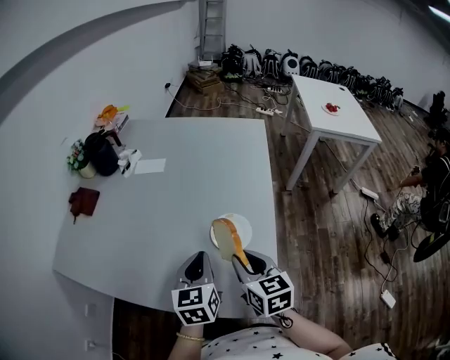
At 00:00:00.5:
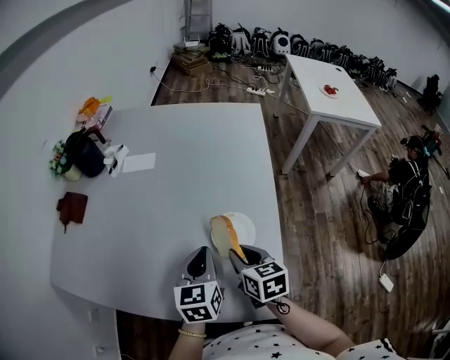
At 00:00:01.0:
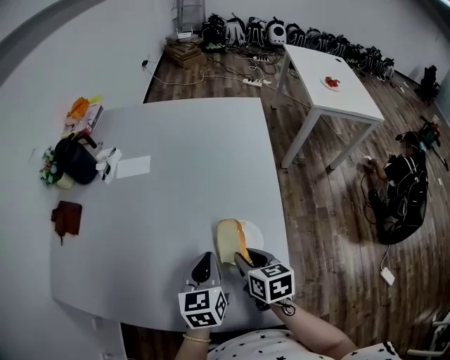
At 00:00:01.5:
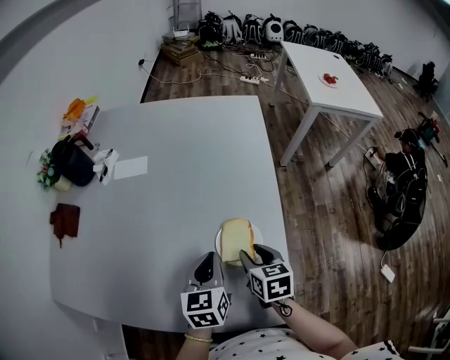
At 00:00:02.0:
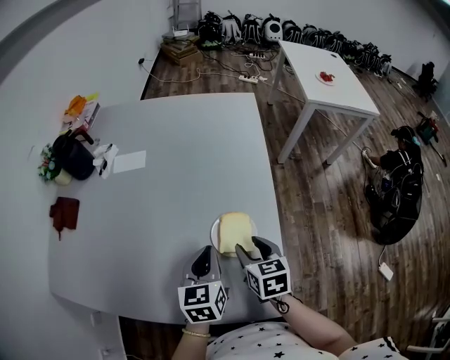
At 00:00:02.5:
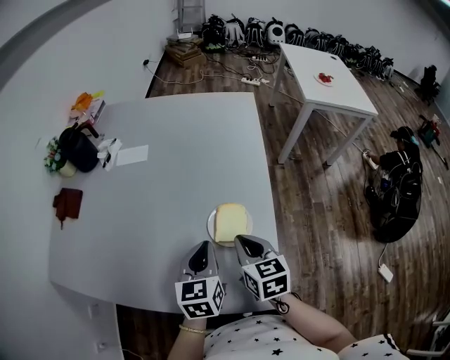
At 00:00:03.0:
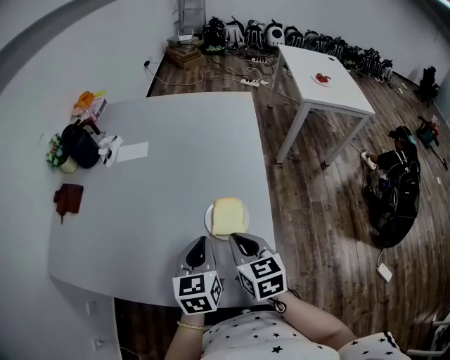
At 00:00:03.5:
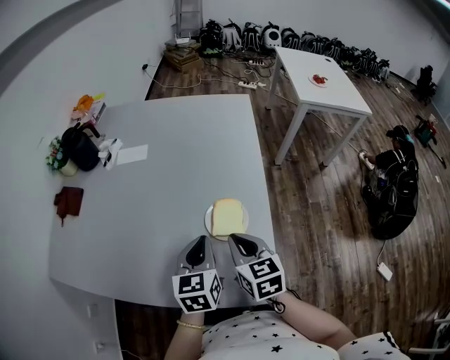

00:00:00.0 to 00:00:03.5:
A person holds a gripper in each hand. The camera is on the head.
00:00:00.0 to 00:00:02.0: The right gripper is displaced downward and forward by approximately 10 cm, and opens. The left gripper is displaced forward by roughly 5 cm.
00:00:02.0 to 00:00:03.5: The right gripper travels upward by some 5 cm, and closes.

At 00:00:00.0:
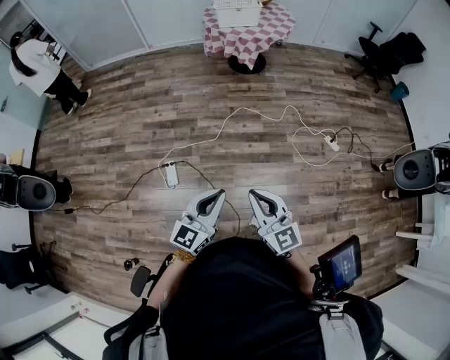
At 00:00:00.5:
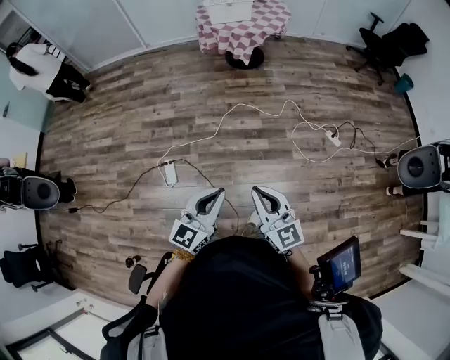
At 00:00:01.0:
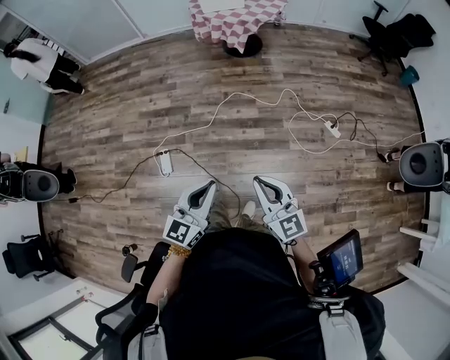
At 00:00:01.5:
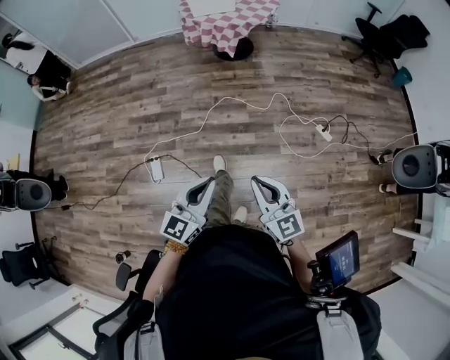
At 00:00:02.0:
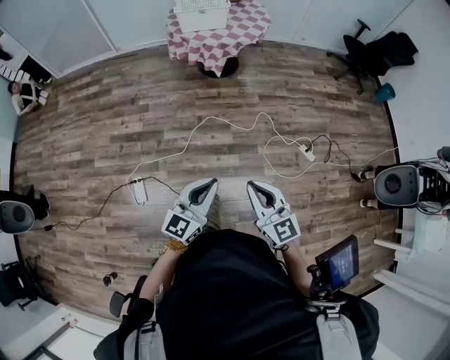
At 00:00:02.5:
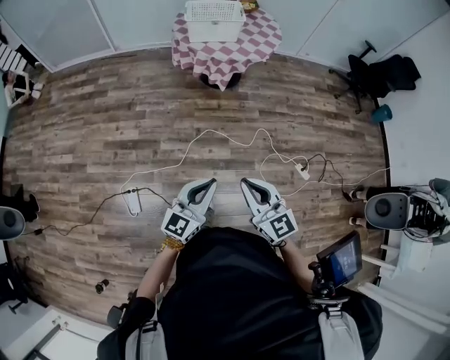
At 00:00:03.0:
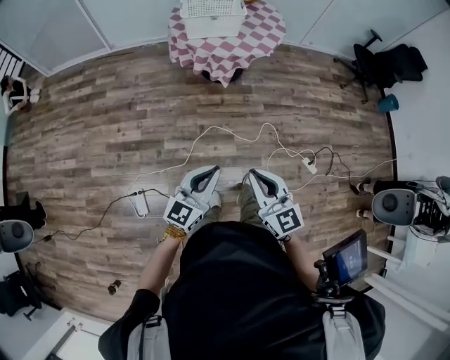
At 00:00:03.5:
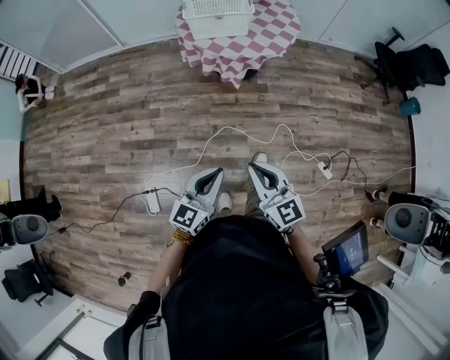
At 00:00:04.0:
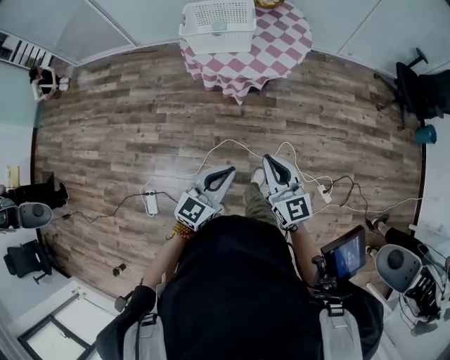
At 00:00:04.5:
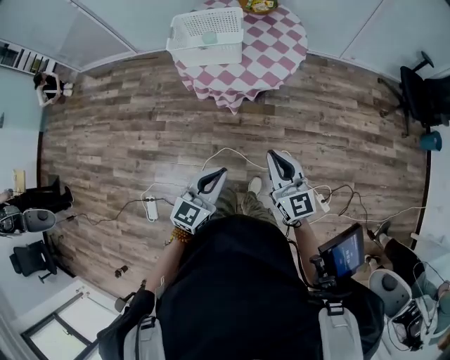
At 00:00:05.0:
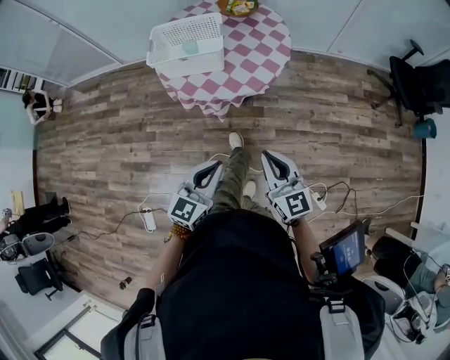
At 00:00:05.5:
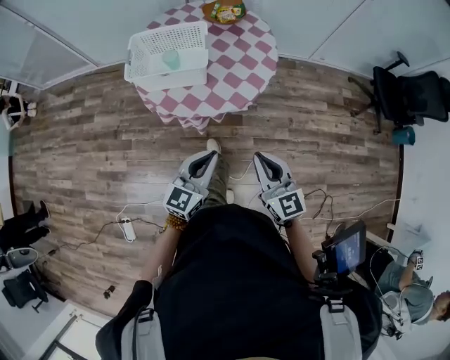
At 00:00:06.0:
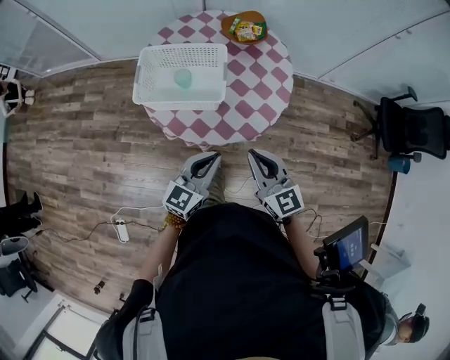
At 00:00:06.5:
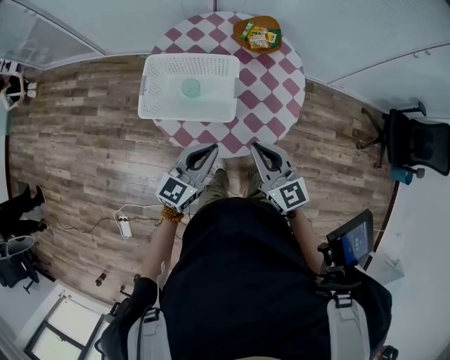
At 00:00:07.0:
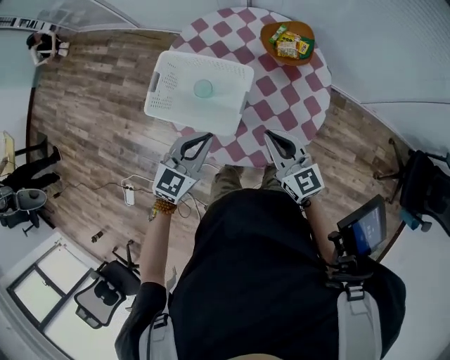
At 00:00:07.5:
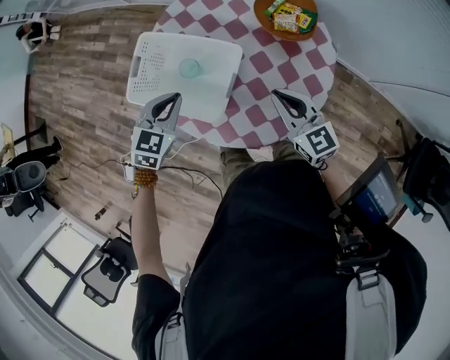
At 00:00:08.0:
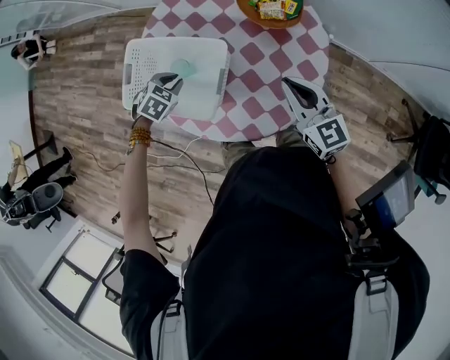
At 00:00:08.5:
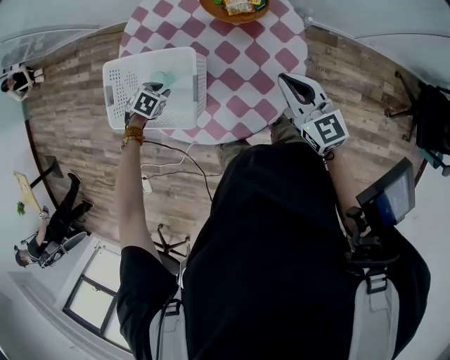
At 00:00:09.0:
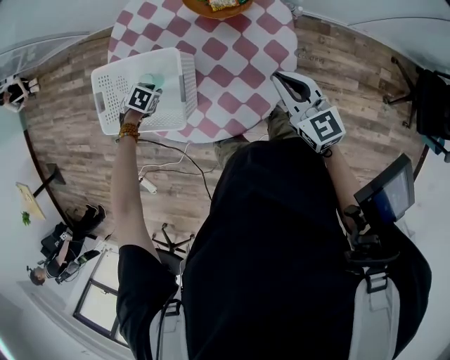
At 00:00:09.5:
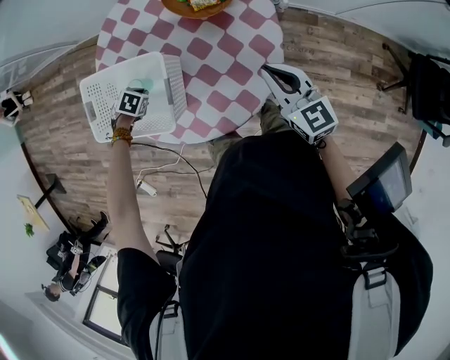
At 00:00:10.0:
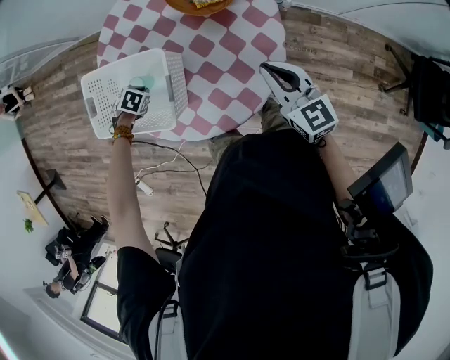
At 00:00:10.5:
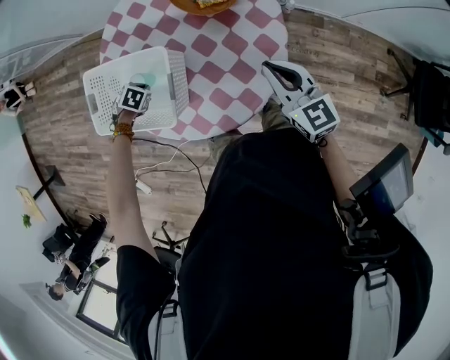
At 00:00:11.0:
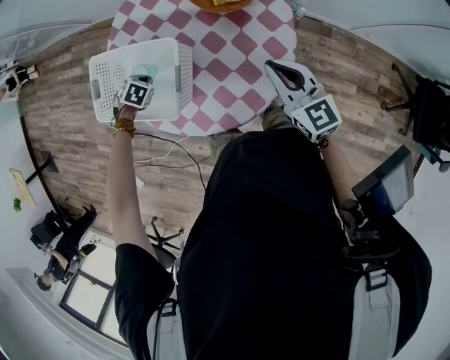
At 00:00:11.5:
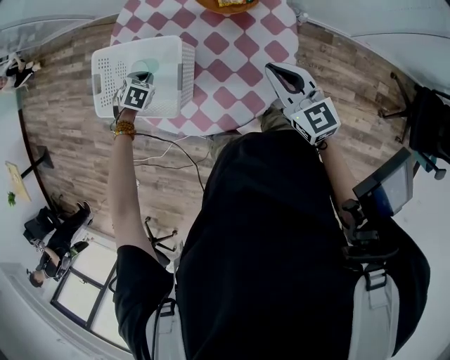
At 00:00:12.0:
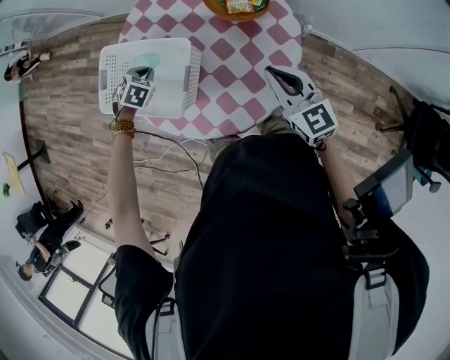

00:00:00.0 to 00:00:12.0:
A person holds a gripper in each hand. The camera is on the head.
00:00:00.0 to 00:00:02.0: The two grippers go about 25 cm forward and to the right.
00:00:02.0 to 00:00:04.0: The pair of grippers is taken forward, about 50 cm.
00:00:04.0 to 00:00:06.0: Both grippers are carried forward, roughly 40 cm.
00:00:06.0 to 00:00:08.0: The left gripper moves some 40 cm, and points its fingers approximately 60 degrees further downward. The right gripper shifts by some 35 cm.
00:00:08.0 to 00:00:10.0: The right gripper moves some 10 cm; the left gripper shifts roughly 10 cm downward.
00:00:10.0 to 00:00:12.0: The left gripper travels upward by roughly 10 cm, and swivels some 20 degrees.

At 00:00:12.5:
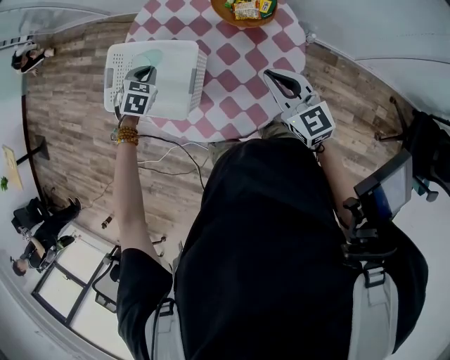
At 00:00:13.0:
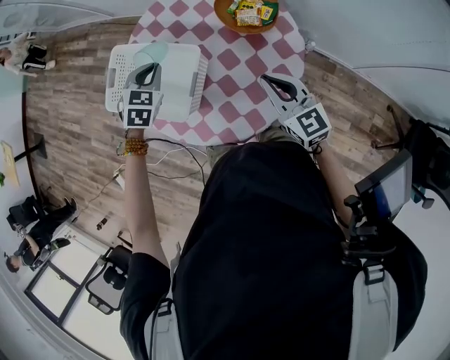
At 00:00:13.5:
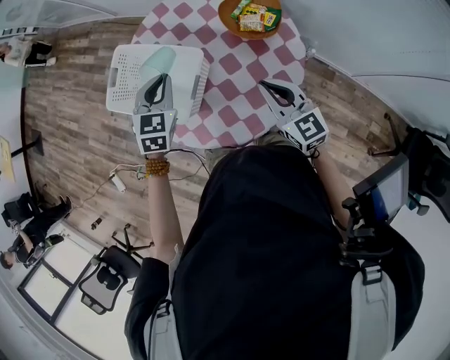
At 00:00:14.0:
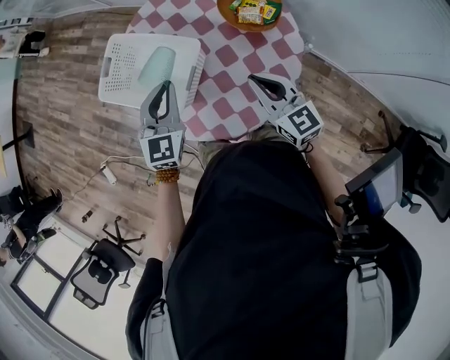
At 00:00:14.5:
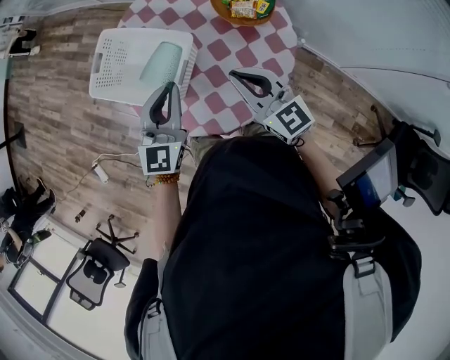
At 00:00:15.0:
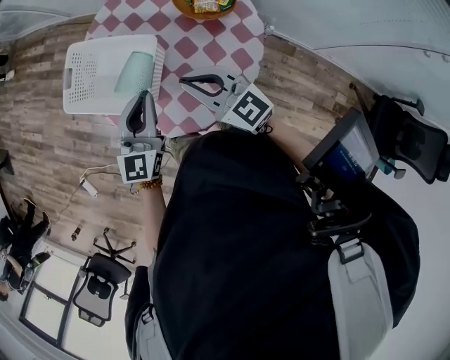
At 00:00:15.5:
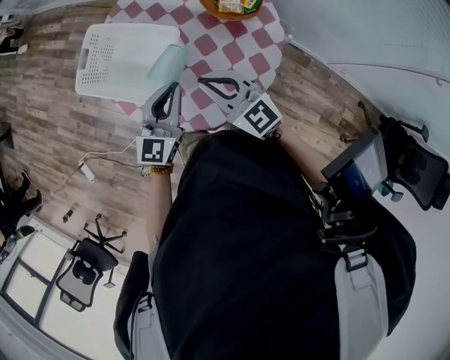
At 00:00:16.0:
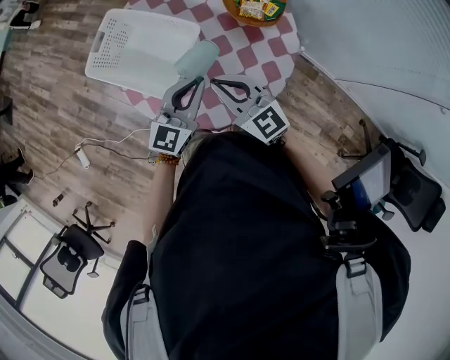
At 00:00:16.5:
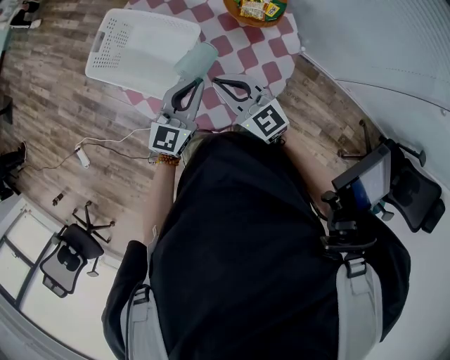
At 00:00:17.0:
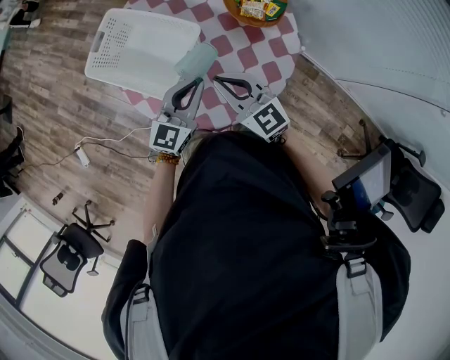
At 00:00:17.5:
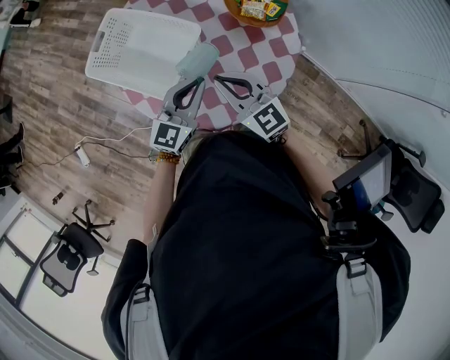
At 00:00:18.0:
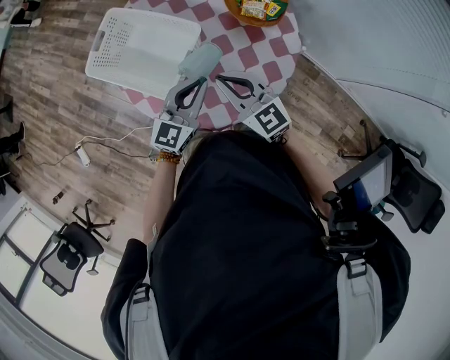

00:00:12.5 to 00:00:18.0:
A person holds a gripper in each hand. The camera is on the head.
00:00:12.5 to 00:00:14.5: The left gripper travels upward, backward and to the right by some 25 cm, and angles its fingers upward, by roughly 50 degrees, while the right gripper moves to the left, approximately 5 cm.
00:00:14.5 to 00:00:16.0: The left gripper is displaced downward by some 5 cm. The right gripper moves to the left, some 5 cm.
00:00:16.0 to 00:00:18.0: There are only small adjustments of the grippers.

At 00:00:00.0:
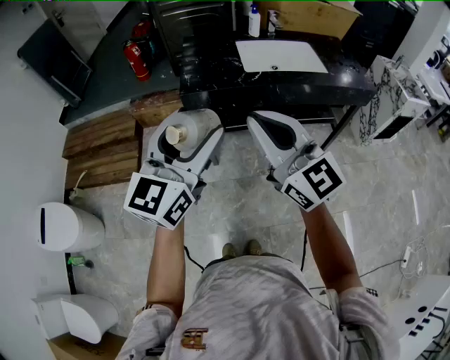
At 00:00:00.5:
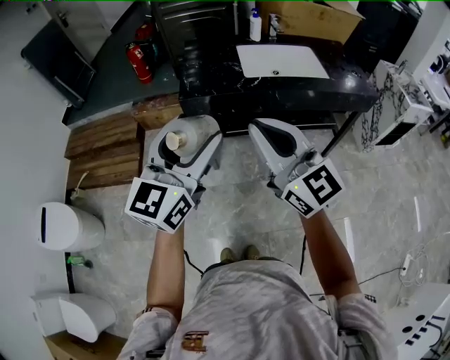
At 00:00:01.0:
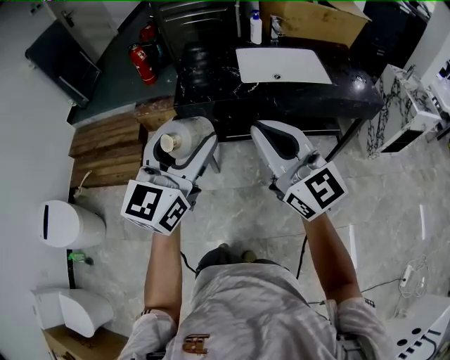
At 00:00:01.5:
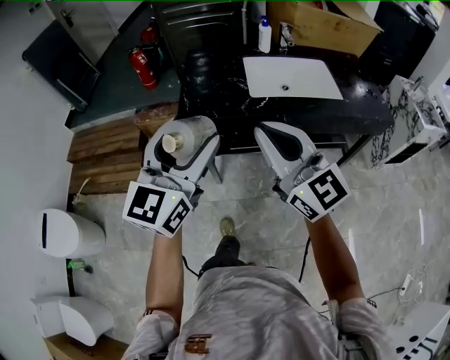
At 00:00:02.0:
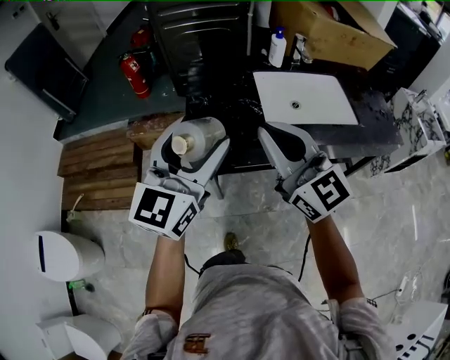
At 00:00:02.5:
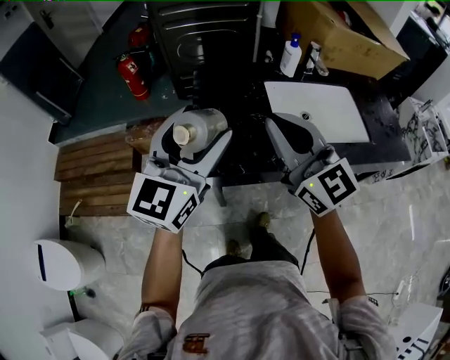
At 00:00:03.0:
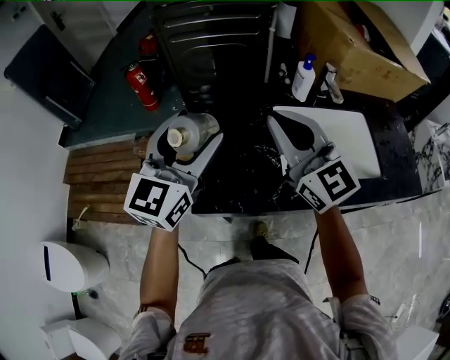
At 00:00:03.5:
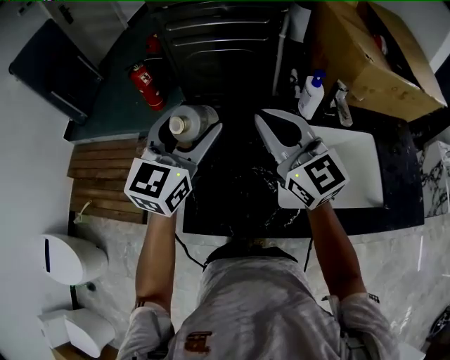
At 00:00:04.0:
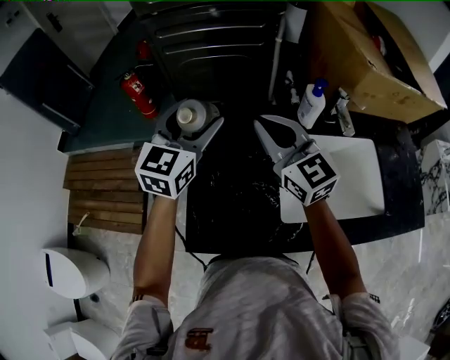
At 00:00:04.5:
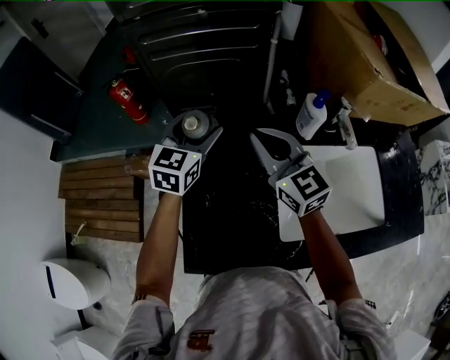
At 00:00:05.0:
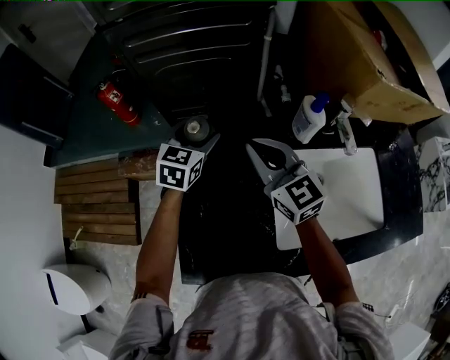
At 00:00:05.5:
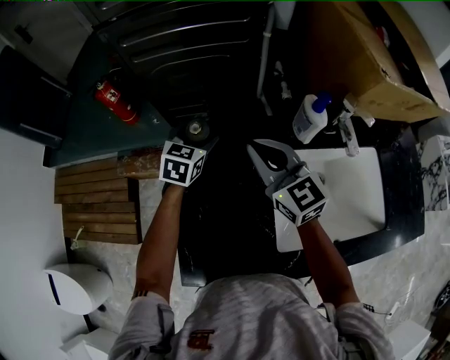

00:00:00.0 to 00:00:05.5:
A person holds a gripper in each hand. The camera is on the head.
00:00:00.0 to 00:00:02.0: The grippers both shift forward by approximately 30 cm.
00:00:02.0 to 00:00:03.5: Both grippers move forward, some 30 cm.
00:00:03.5 to 00:00:05.5: The left gripper travels downward and forward by some 35 cm, and tips its fingers downward by some 30 degrees; the right gripper moves forward and downward, roughly 20 cm.
